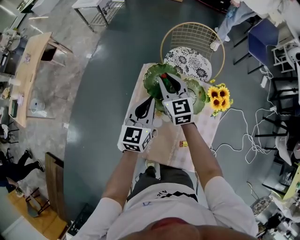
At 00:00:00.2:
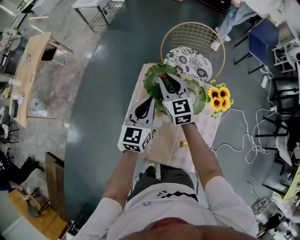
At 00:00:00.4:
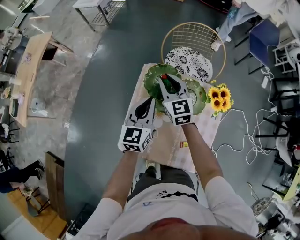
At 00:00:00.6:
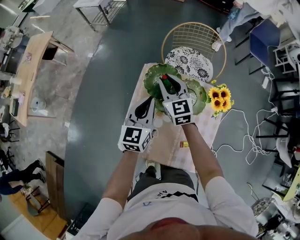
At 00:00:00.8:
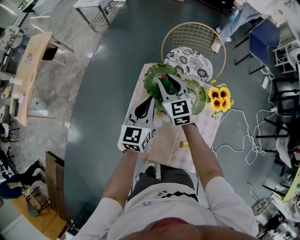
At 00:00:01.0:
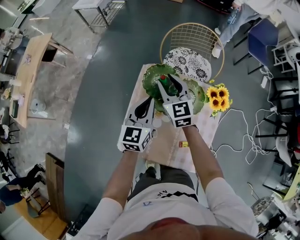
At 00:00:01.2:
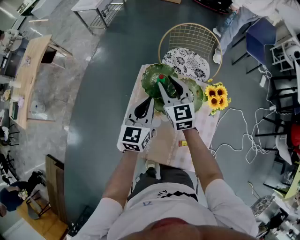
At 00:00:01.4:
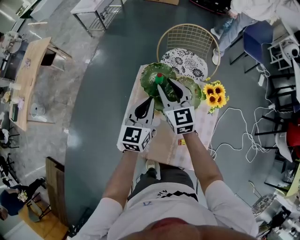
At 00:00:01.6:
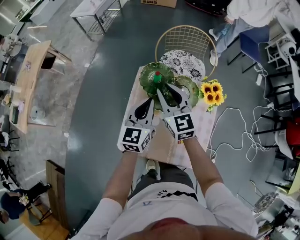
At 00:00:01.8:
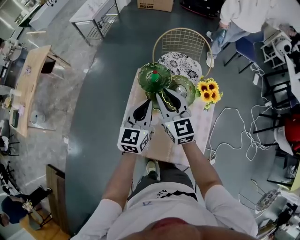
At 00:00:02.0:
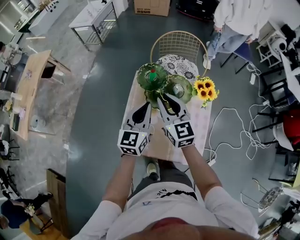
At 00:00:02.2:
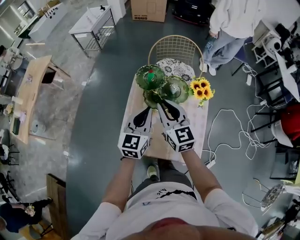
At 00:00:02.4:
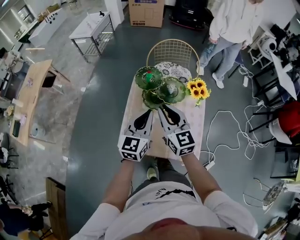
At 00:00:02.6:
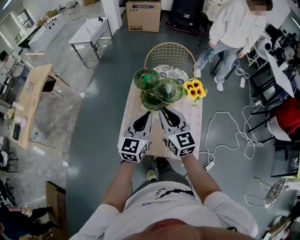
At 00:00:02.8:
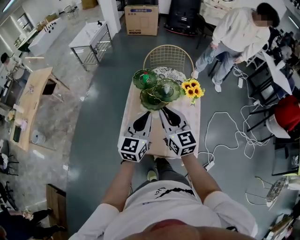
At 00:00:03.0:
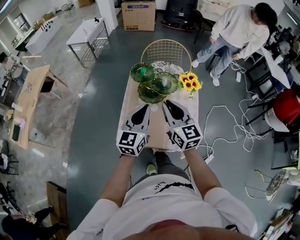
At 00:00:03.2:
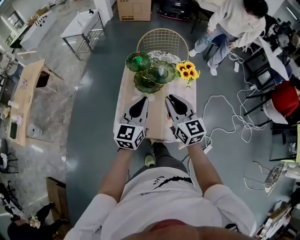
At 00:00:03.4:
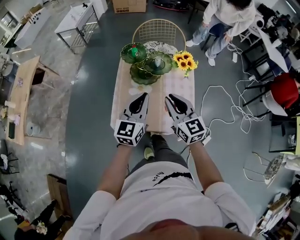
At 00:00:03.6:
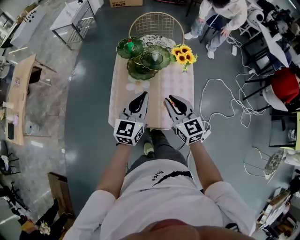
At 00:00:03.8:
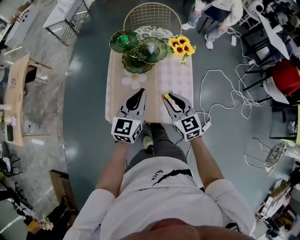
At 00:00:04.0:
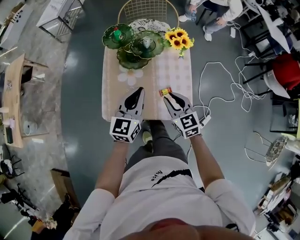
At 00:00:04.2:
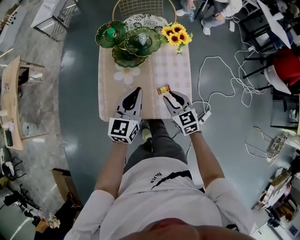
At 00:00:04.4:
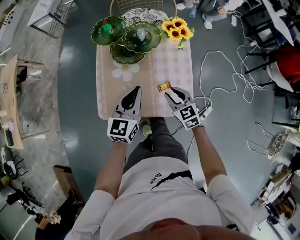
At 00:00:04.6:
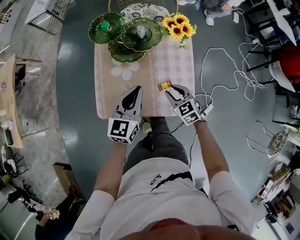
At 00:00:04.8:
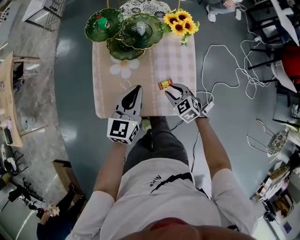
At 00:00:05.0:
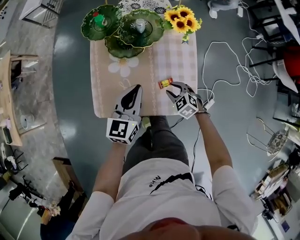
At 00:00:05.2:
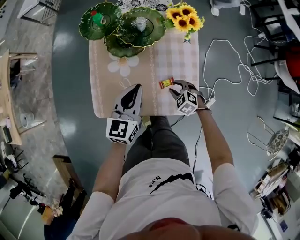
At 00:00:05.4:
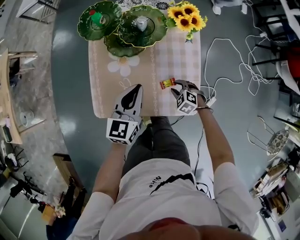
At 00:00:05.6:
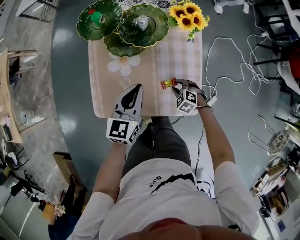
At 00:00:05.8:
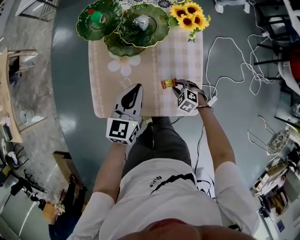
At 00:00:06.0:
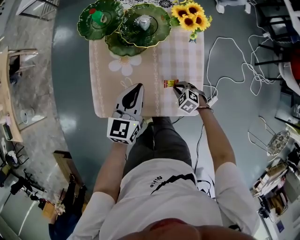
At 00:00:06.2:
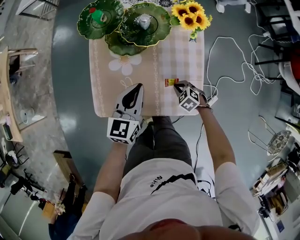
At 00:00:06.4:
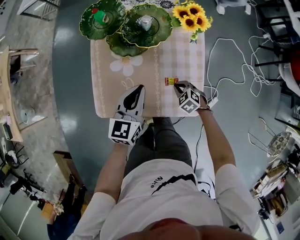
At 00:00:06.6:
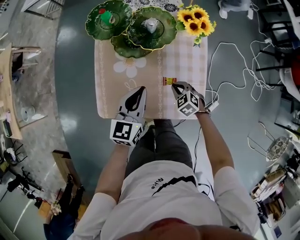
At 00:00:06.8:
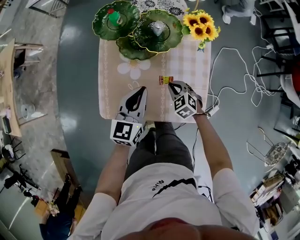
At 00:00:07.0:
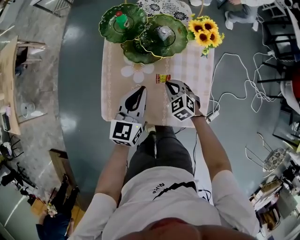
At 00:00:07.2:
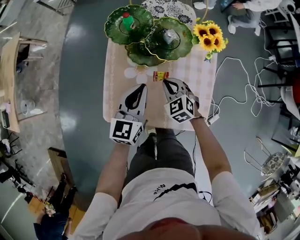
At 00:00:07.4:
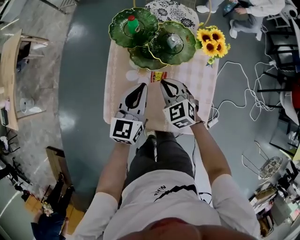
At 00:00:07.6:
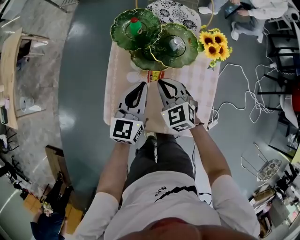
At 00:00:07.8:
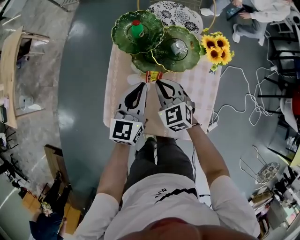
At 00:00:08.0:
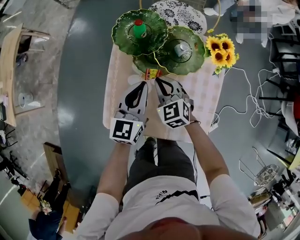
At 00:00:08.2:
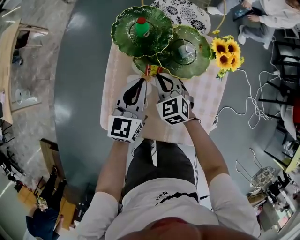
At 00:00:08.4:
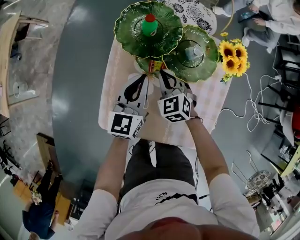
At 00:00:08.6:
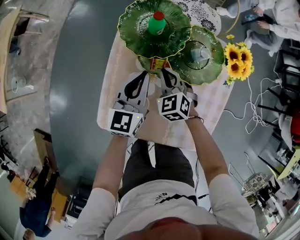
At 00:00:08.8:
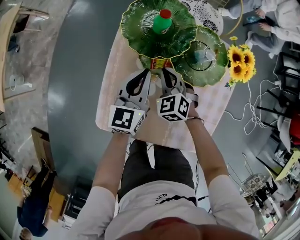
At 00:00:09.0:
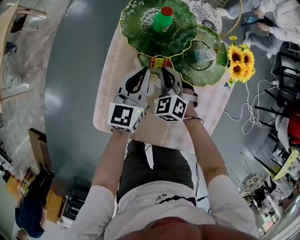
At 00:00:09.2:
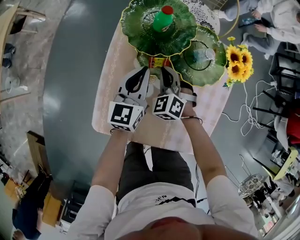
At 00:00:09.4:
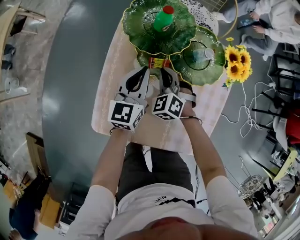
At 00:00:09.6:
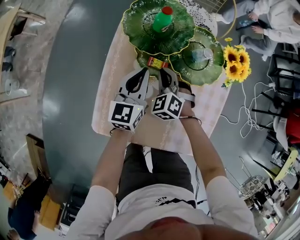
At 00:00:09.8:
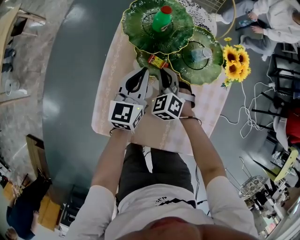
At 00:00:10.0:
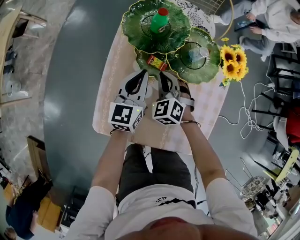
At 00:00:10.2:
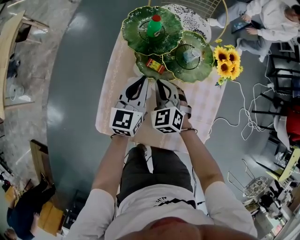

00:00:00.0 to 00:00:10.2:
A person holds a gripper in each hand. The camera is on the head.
00:00:00.0 to 00:00:01.4: The right gripper goes approximately 5 cm backward.
00:00:01.4 to 00:00:03.0: Both grippers travel together backward and upward, some 30 cm. The right gripper closes up.
00:00:03.0 to 00:00:04.4: The right gripper goes about 30 cm downward and to the right, and tips its fingers downward by roughly 30 degrees; the left gripper moves downward and to the right, about 15 cm.
00:00:04.4 to 00:00:05.8: The left gripper goes approximately 10 cm downward, while the right gripper moves downward, roughly 20 cm, and angles its fingers downward, by some 30 degrees.
00:00:05.8 to 00:00:07.2: The right gripper is displaced upward, forward and to the left by roughly 20 cm, rotates approximately 20 degrees, and closes its fingers, while the left gripper travels to the left by approximately 5 cm.
00:00:07.2 to 00:00:08.8: The left gripper shifts about 15 cm forward and downward. The right gripper moves forward, downward and to the left, approximately 15 cm.
00:00:08.8 to 00:00:10.2: The right gripper moves upward, about 5 cm.

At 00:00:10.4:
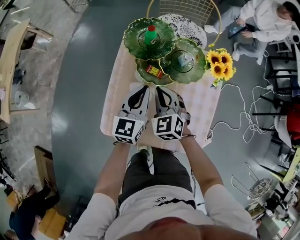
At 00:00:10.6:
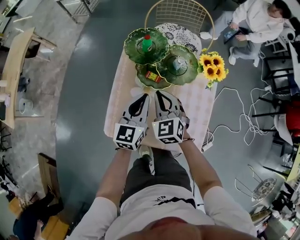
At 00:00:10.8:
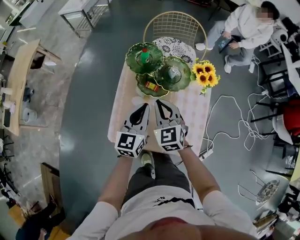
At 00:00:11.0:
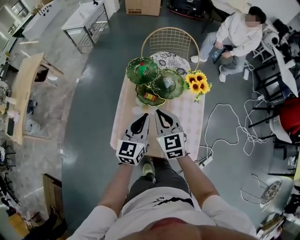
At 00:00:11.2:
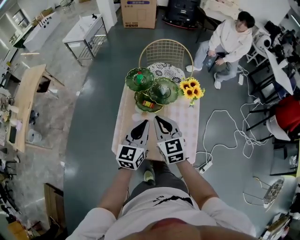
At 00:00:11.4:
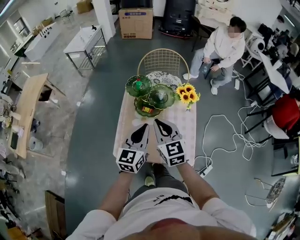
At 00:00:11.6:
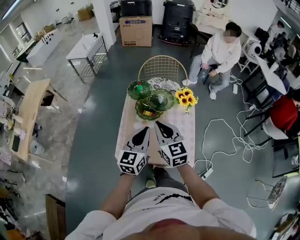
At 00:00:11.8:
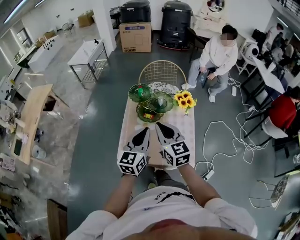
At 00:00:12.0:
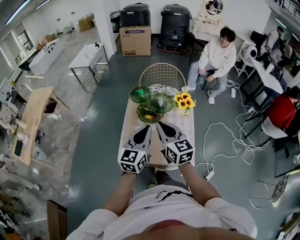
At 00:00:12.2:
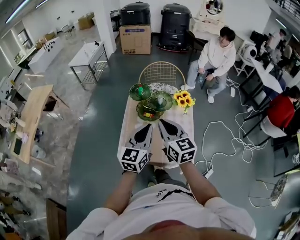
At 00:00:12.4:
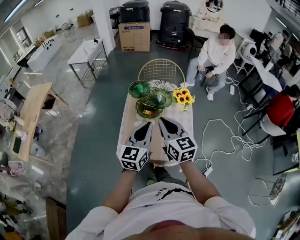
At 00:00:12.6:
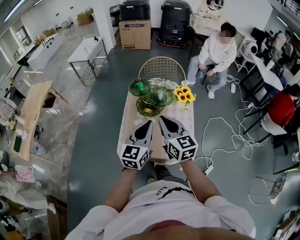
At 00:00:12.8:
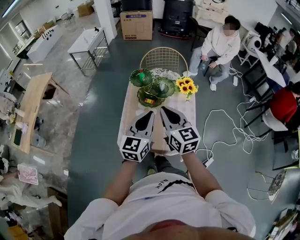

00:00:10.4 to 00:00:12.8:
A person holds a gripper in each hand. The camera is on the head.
00:00:10.4 to 00:00:11.6: The two grippers go some 30 cm upward and backward. The right gripper turns by roughly 40 degrees.
00:00:11.6 to 00:00:12.8: Both grippers move upward, roughly 5 cm.

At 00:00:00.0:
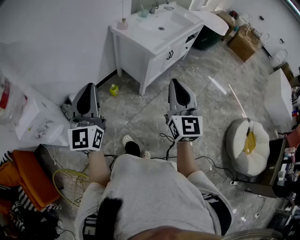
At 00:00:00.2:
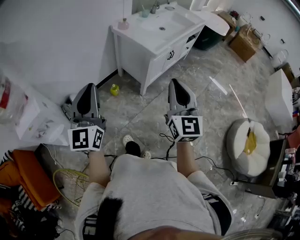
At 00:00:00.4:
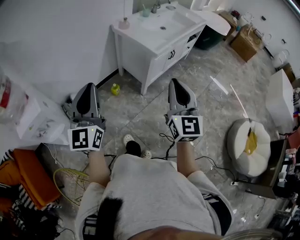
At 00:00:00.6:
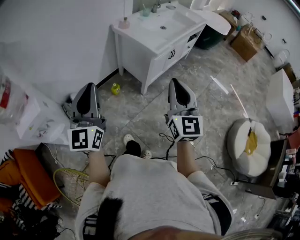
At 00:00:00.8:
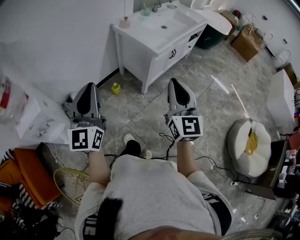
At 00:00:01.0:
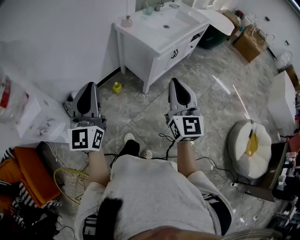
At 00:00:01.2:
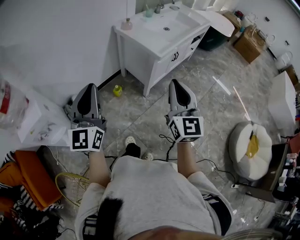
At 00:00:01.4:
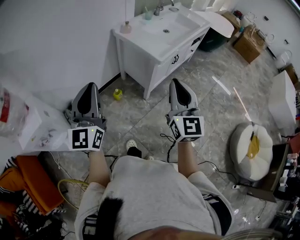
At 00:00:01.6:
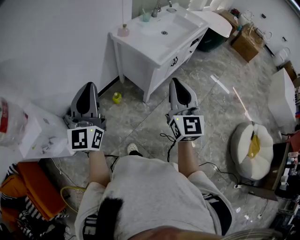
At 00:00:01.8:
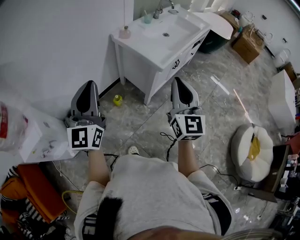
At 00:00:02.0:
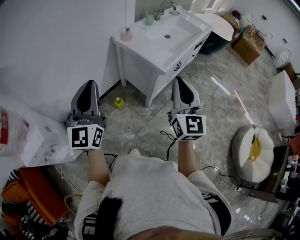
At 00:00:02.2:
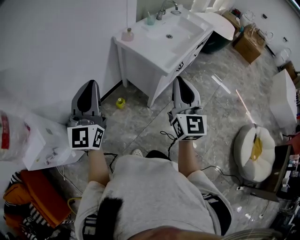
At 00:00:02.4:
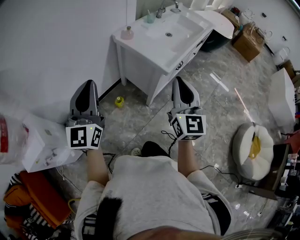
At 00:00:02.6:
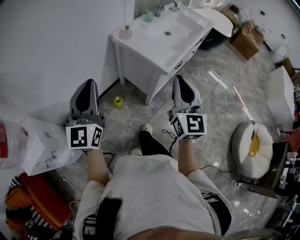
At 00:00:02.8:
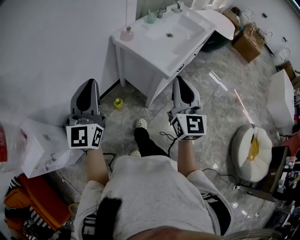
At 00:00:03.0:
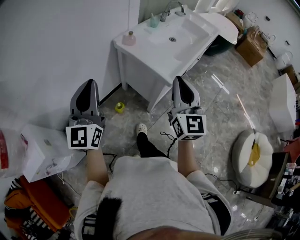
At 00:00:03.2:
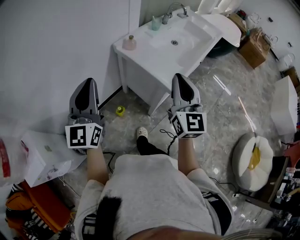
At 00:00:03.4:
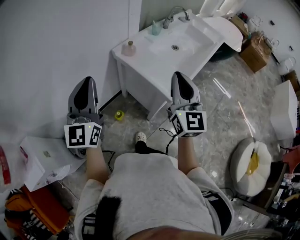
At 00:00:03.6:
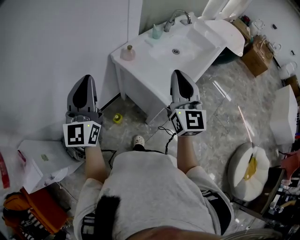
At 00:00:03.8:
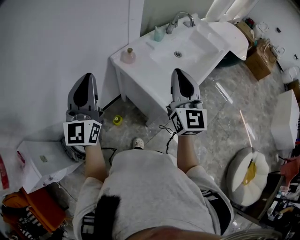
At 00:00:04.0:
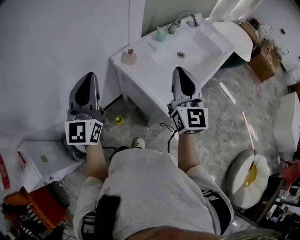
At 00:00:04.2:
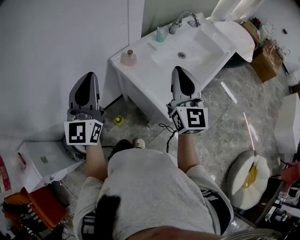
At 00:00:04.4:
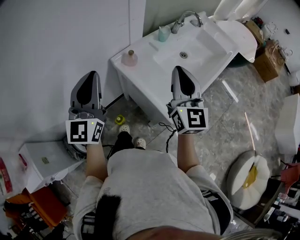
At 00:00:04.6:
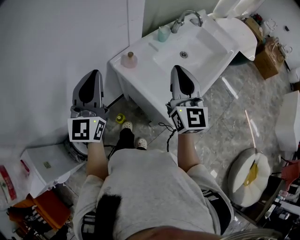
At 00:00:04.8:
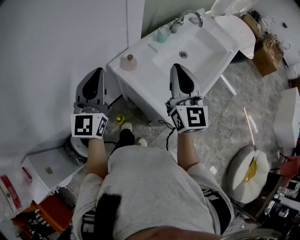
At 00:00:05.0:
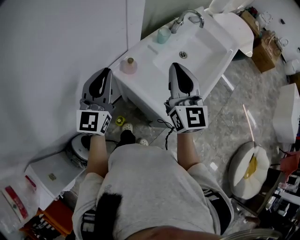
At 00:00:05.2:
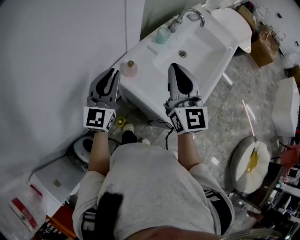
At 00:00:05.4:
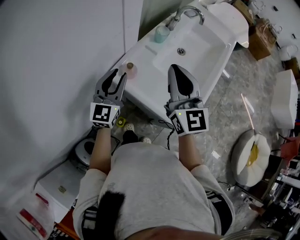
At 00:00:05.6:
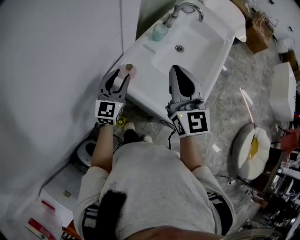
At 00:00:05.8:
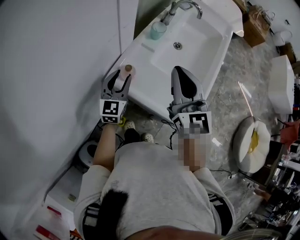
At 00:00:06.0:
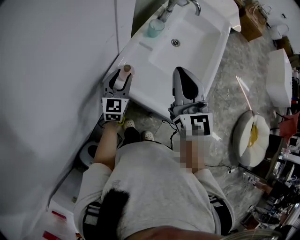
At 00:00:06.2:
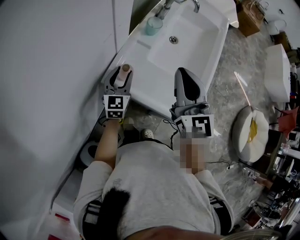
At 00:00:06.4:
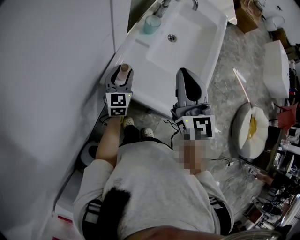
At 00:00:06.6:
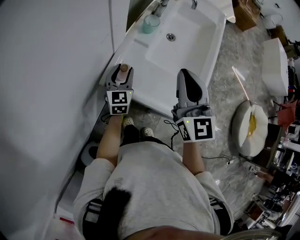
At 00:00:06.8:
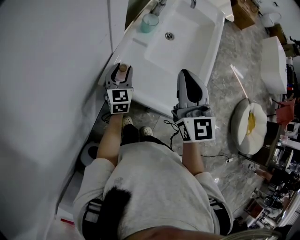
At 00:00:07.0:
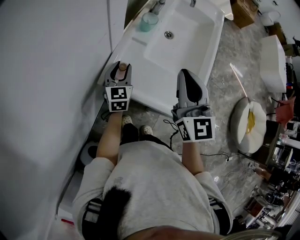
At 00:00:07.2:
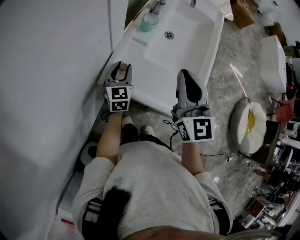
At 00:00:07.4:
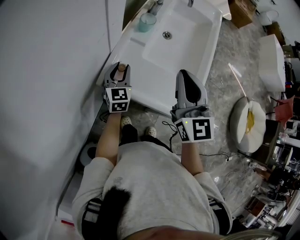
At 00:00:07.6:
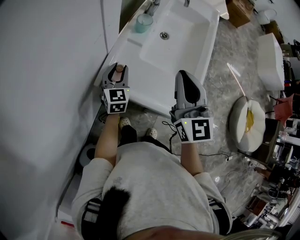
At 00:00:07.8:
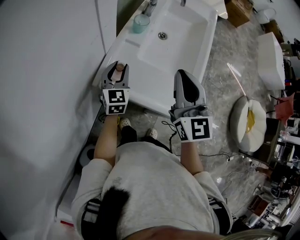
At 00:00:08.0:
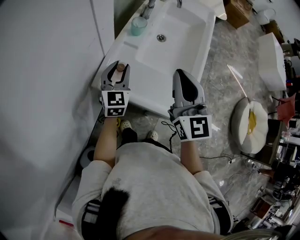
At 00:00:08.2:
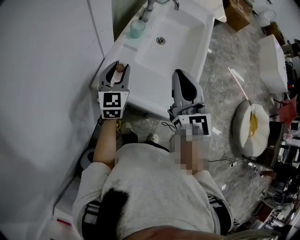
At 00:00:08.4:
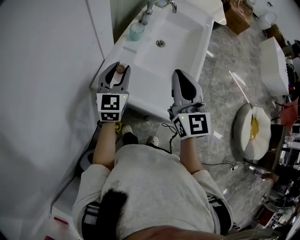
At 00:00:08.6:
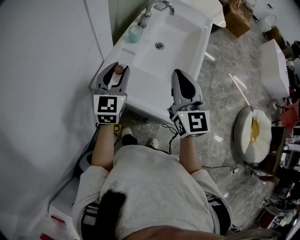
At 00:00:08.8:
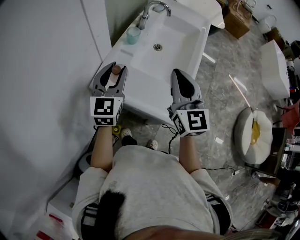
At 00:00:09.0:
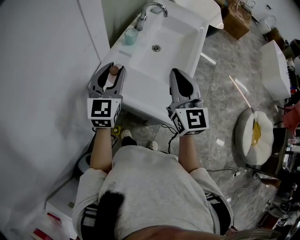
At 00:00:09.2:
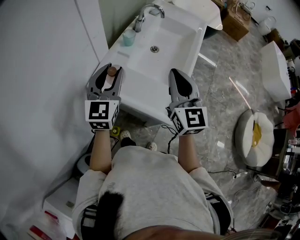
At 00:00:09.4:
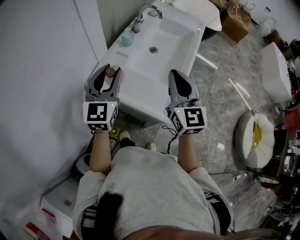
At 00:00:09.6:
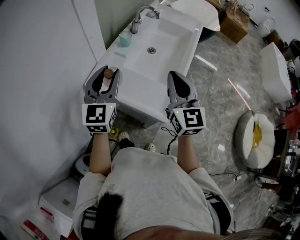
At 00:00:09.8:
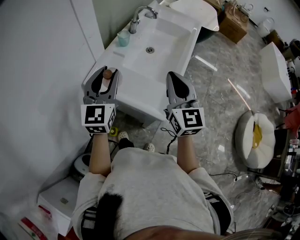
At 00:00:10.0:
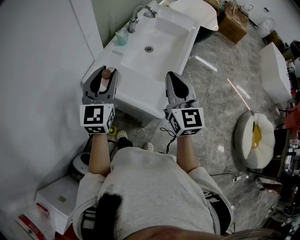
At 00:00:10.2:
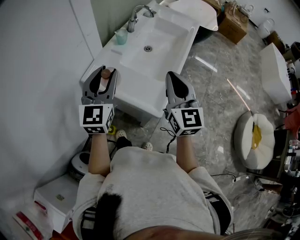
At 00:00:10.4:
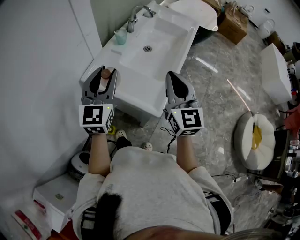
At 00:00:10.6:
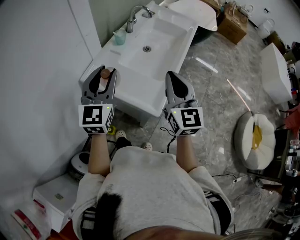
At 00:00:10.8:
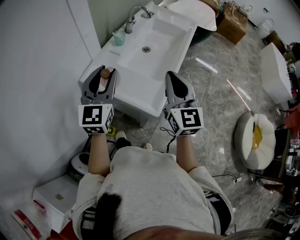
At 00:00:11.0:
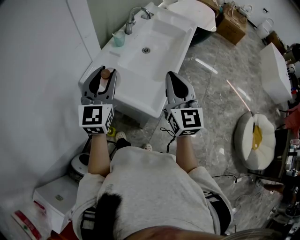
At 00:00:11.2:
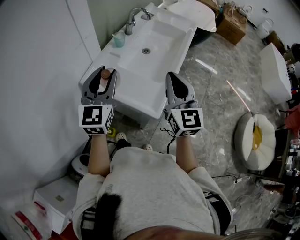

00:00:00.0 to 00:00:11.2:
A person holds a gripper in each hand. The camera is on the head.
00:00:00.0 to 00:00:01.6: Both grippers move forward, approximately 10 cm.
00:00:01.6 to 00:00:03.2: Both grippers travel together forward, roughly 25 cm.
00:00:03.2 to 00:00:04.8: Both grippers move forward, some 25 cm.
00:00:04.8 to 00:00:06.4: The right gripper heads forward, covering roughly 5 cm, and changes its angle by roughly 20 degrees. Meanwhile the left gripper shifts some 35 cm downward and forward, changes its angle by about 30 degrees, and opens up.
00:00:06.4 to 00:00:08.0: The left gripper heads upward, covering about 5 cm.
00:00:08.0 to 00:00:09.6: The left gripper travels upward and backward by approximately 20 cm; the right gripper moves to the right and backward, about 10 cm.
00:00:09.6 to 00:00:11.2: The right gripper shifts by about 5 cm; the left gripper changes place by some 5 cm.
